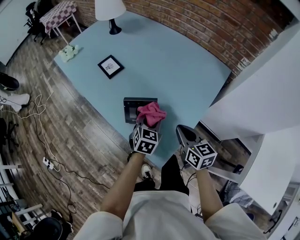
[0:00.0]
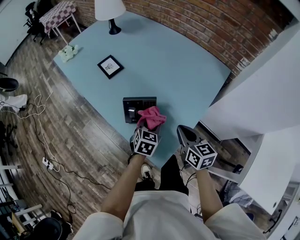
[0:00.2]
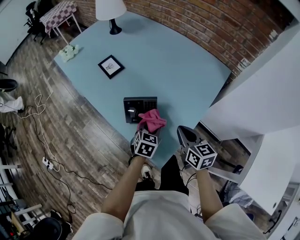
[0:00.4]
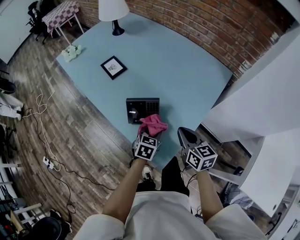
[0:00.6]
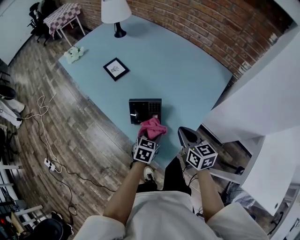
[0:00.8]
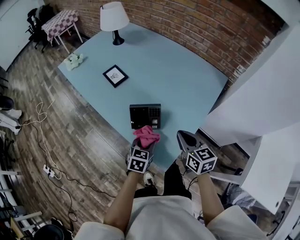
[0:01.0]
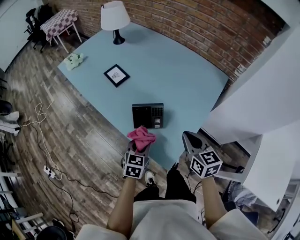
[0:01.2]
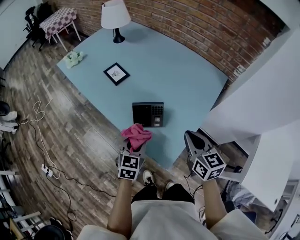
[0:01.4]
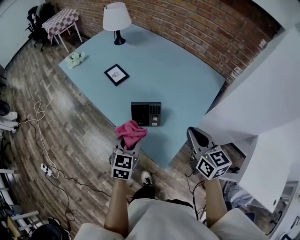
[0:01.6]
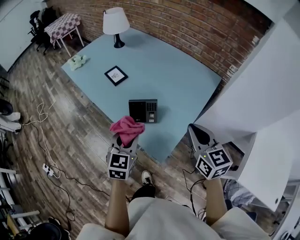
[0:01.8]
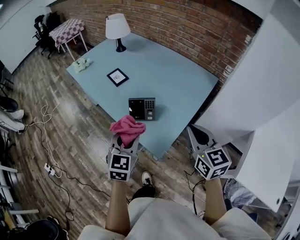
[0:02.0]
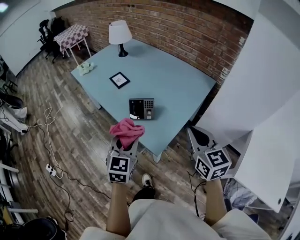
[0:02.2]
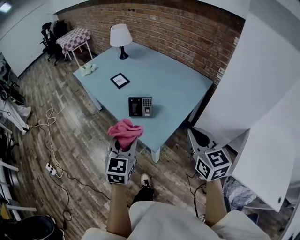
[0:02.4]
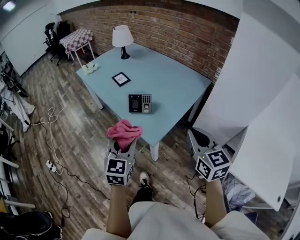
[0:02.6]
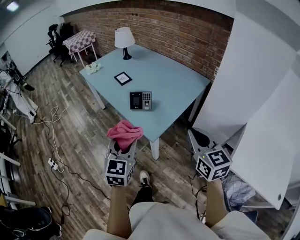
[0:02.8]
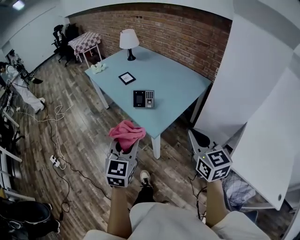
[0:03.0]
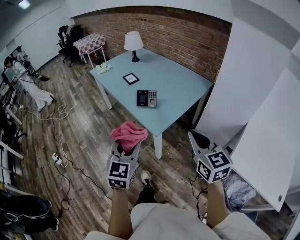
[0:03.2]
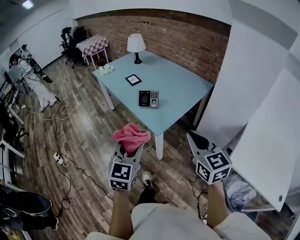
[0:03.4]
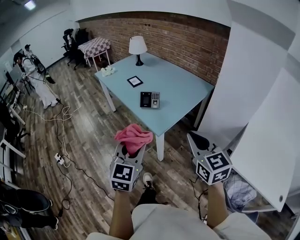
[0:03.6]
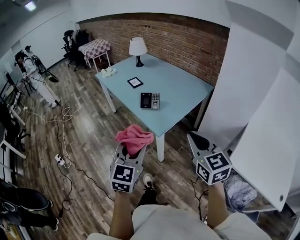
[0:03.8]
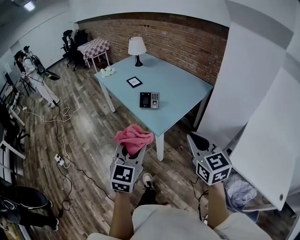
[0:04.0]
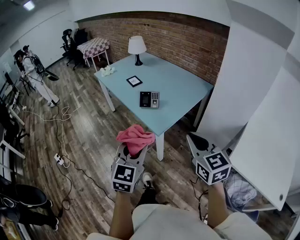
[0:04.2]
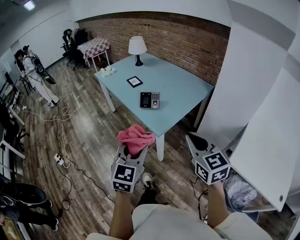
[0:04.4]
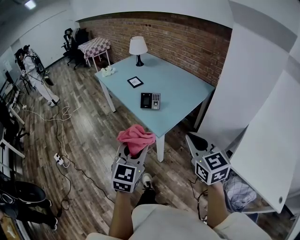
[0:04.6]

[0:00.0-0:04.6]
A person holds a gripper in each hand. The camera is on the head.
0:00.0 to 0:01.6: The right gripper shifts roughly 15 cm upward. Meanwhile the left gripper moves to the left, backward and upward, some 20 cm.
0:01.6 to 0:03.0: The right gripper heads backward, covering about 30 cm. Meanwhile the left gripper shifts roughly 35 cm backward and upward.
0:03.0 to 0:04.6: Both grippers move backward, roughly 5 cm.

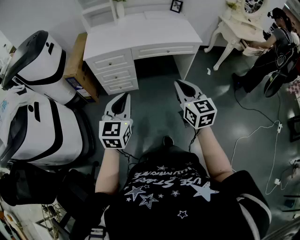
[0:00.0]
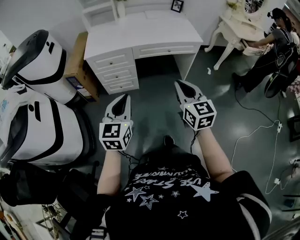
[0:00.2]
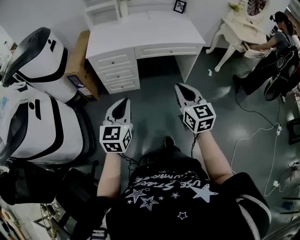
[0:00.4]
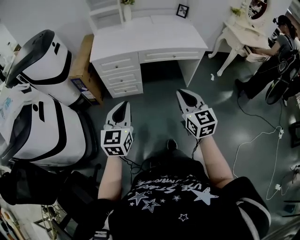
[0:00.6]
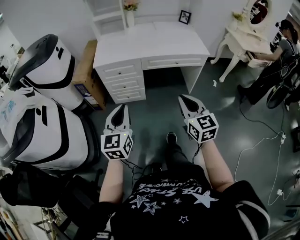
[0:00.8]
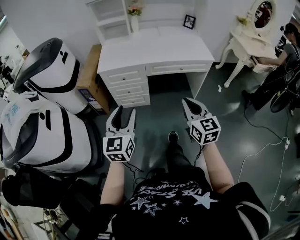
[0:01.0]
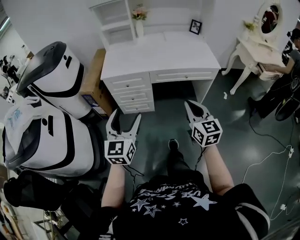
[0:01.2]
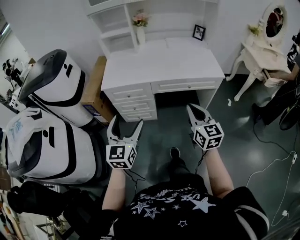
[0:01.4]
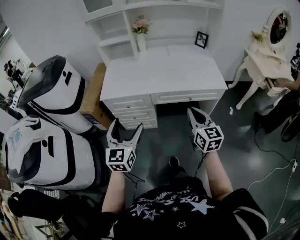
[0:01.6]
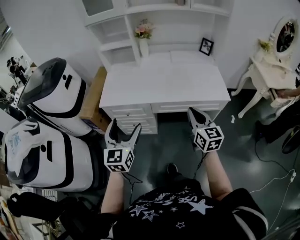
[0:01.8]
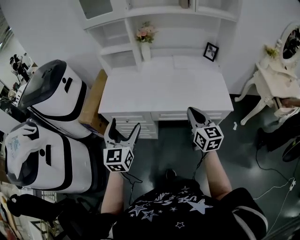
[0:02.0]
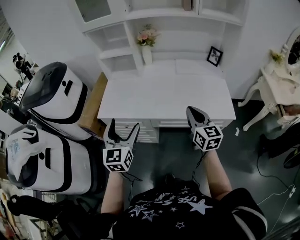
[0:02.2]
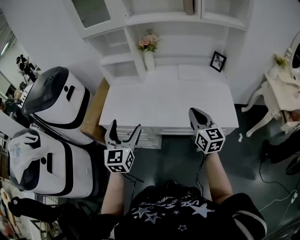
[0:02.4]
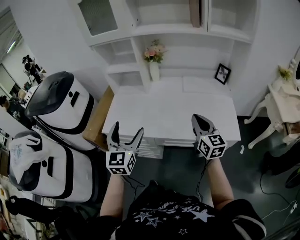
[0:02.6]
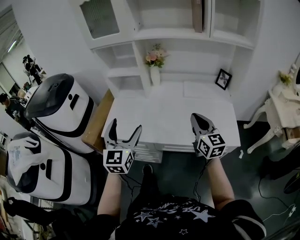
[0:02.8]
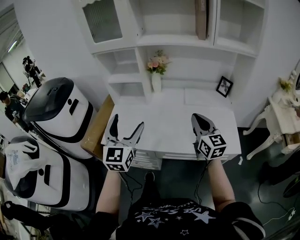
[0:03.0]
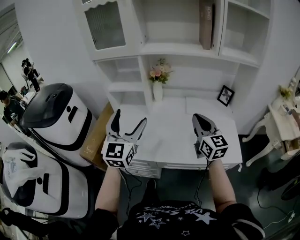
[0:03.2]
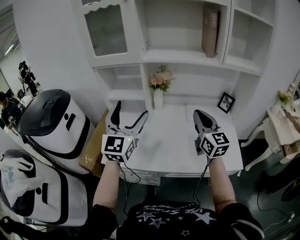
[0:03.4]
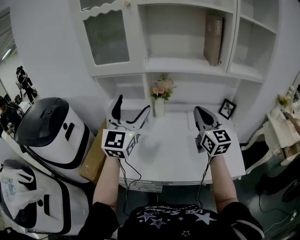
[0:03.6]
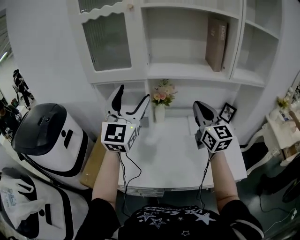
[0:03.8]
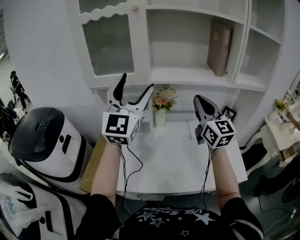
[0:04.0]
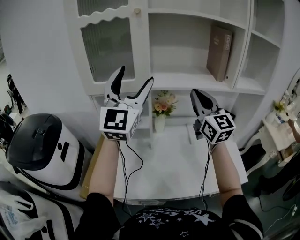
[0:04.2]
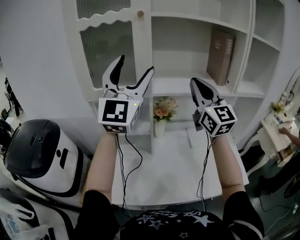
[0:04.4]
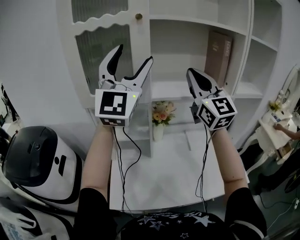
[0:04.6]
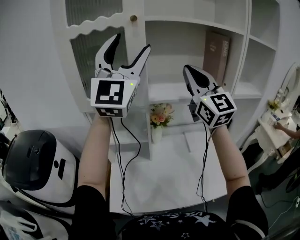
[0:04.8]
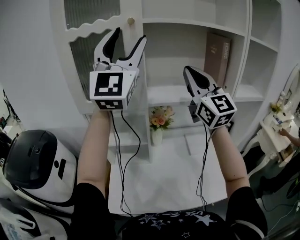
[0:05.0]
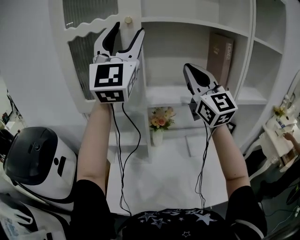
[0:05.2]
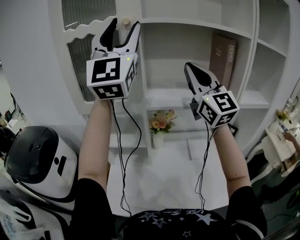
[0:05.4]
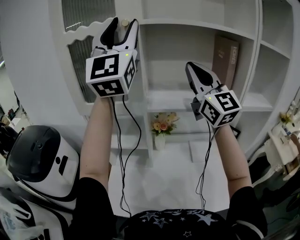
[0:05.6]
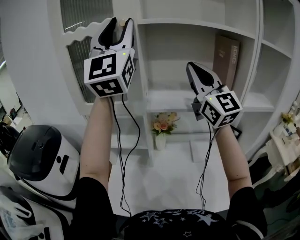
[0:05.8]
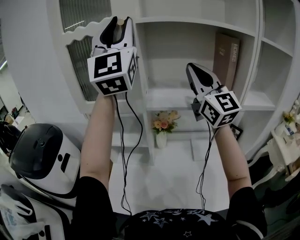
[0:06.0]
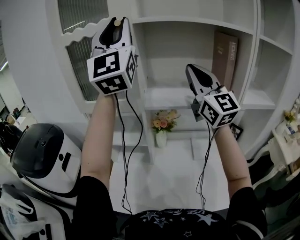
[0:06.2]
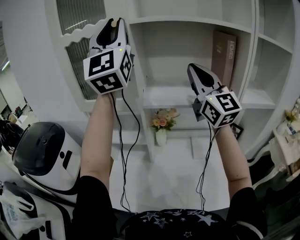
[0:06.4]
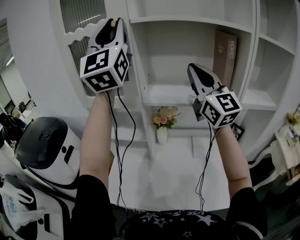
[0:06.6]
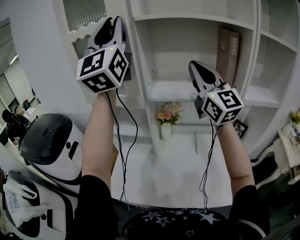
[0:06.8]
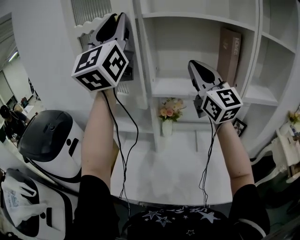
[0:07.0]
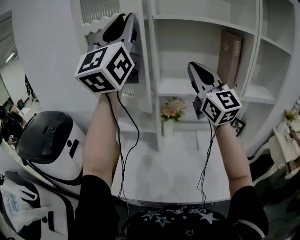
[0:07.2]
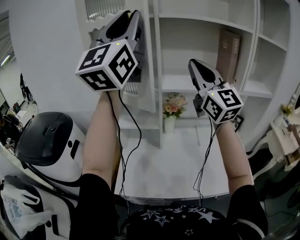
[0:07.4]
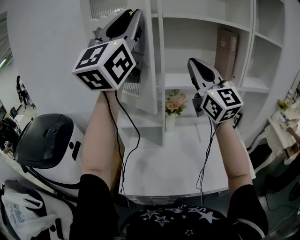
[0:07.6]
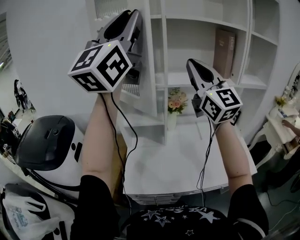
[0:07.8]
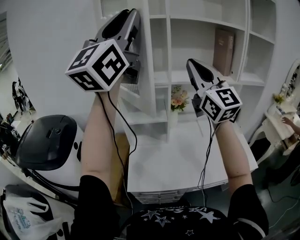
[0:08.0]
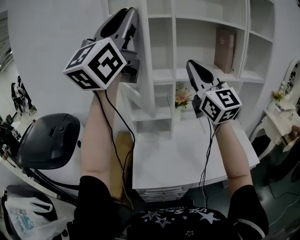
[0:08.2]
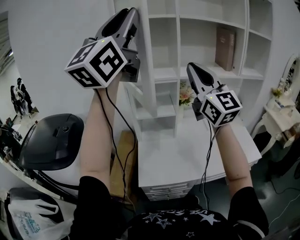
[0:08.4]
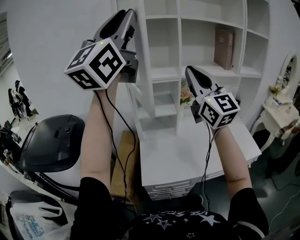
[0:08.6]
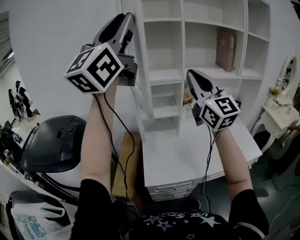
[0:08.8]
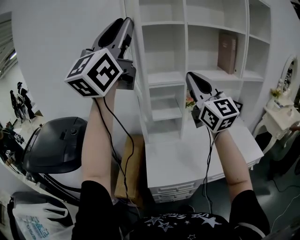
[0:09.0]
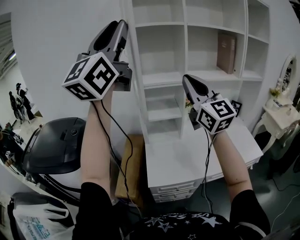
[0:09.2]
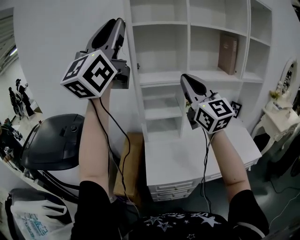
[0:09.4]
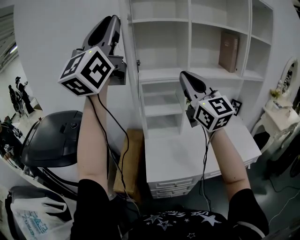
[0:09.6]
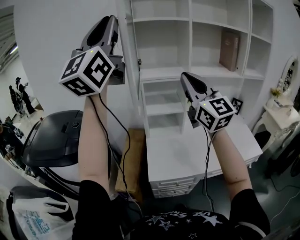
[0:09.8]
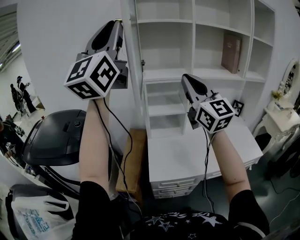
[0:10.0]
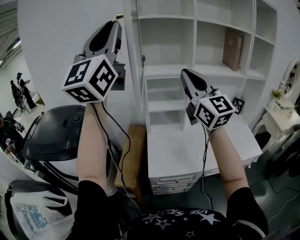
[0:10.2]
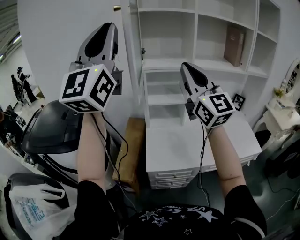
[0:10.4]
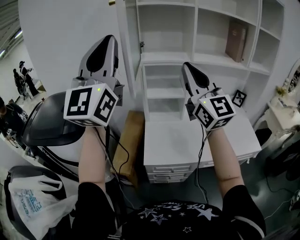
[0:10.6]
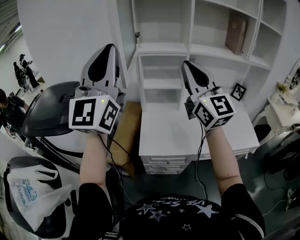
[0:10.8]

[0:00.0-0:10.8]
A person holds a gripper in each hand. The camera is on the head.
0:00.0 to 0:01.6: Both grippers move forward, some 20 cm. The left gripper opens its fingers.
0:01.6 to 0:03.0: The grippers both shift forward by some 30 cm.
0:03.0 to 0:04.6: The left gripper is displaced upward and forward by about 50 cm, and rotates approximately 40 degrees. Meanwhile the right gripper heads upward, forward and to the left, covering roughly 40 cm, and swivels approximately 30 degrees.
0:04.6 to 0:06.2: The right gripper shifts by about 5 cm. The left gripper moves upward, roughly 10 cm, swivels some 20 degrees, and closes up.
0:06.2 to 0:07.8: The grippers both shift backward and to the left by some 20 cm. The left gripper rotates some 30 degrees.
0:07.8 to 0:09.2: The two grippers go approximately 20 cm to the left and backward.
0:09.2 to 0:10.8: The right gripper goes some 5 cm backward; the left gripper moves downward and backward, some 15 cm, and rotates about 20 degrees.

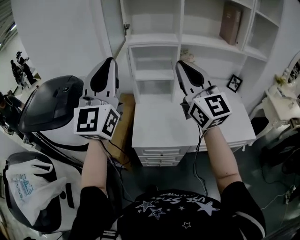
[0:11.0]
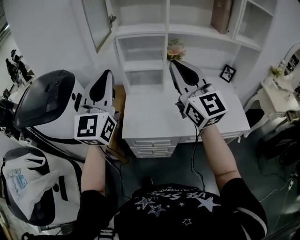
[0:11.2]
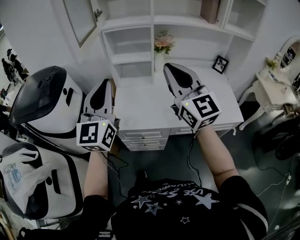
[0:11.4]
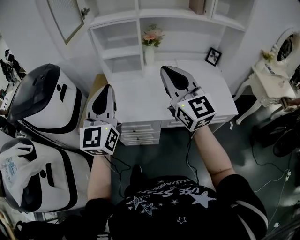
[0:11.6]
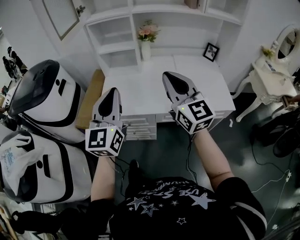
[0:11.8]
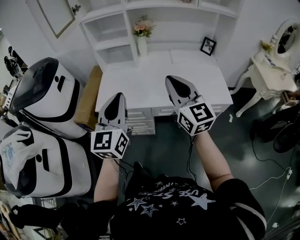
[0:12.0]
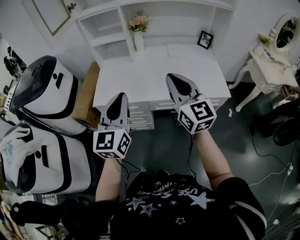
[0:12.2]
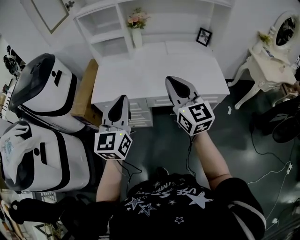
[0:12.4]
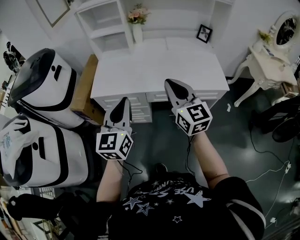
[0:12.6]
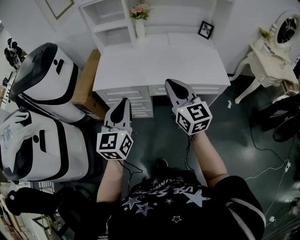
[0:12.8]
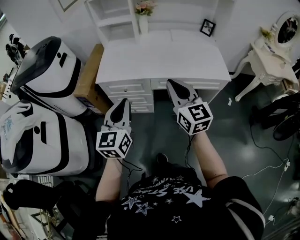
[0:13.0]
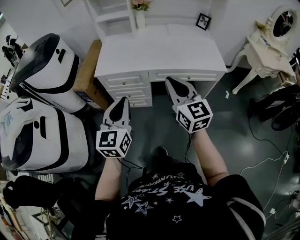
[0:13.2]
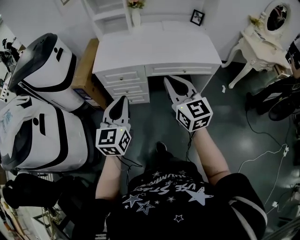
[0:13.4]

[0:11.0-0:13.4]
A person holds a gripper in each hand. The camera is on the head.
0:11.0 to 0:12.2: The right gripper heads to the right, backward and downward, covering some 35 cm. Meanwhile the left gripper is displaced to the right, downward and backward by some 40 cm, and swivels approximately 30 degrees.
0:12.2 to 0:13.4: The right gripper moves backward, some 20 cm. Meanwhile the left gripper moves backward and downward, some 20 cm.

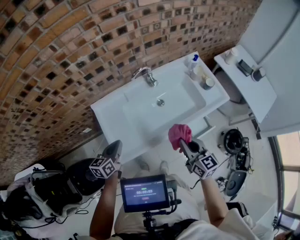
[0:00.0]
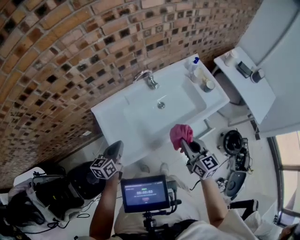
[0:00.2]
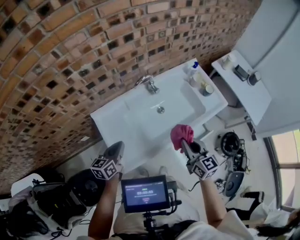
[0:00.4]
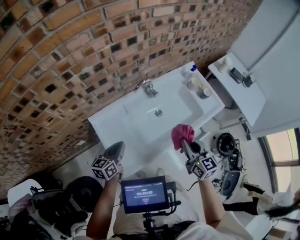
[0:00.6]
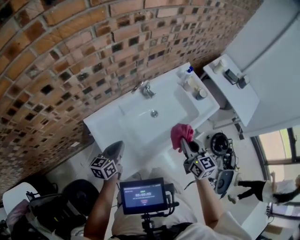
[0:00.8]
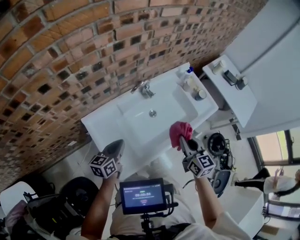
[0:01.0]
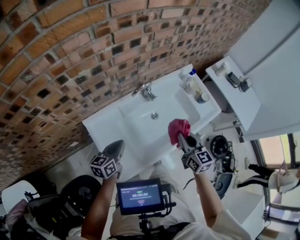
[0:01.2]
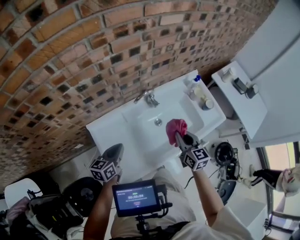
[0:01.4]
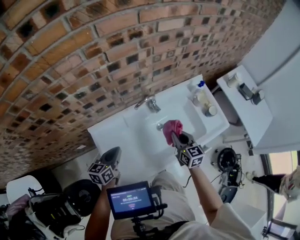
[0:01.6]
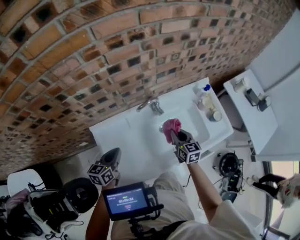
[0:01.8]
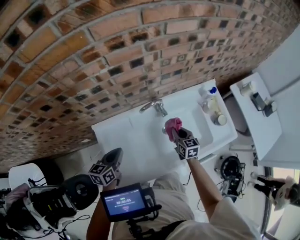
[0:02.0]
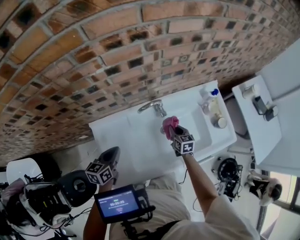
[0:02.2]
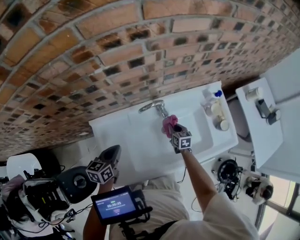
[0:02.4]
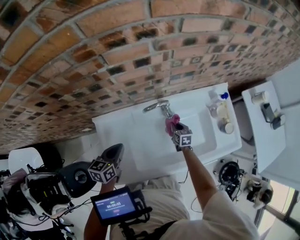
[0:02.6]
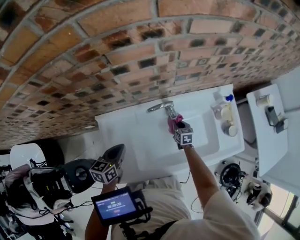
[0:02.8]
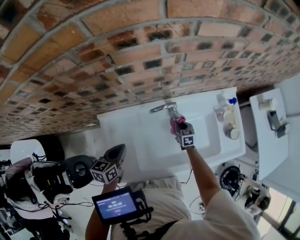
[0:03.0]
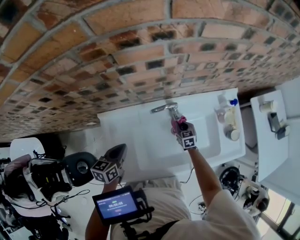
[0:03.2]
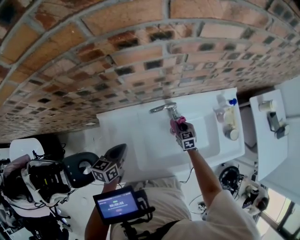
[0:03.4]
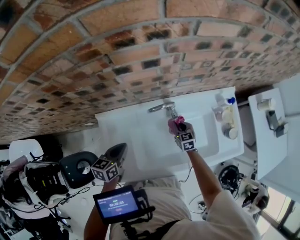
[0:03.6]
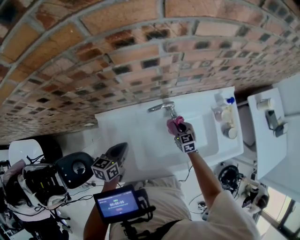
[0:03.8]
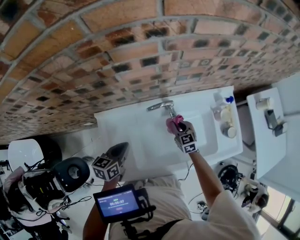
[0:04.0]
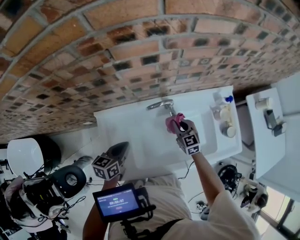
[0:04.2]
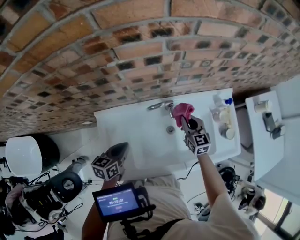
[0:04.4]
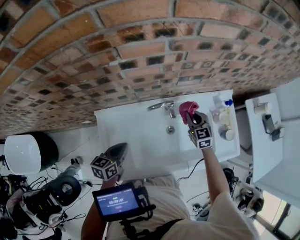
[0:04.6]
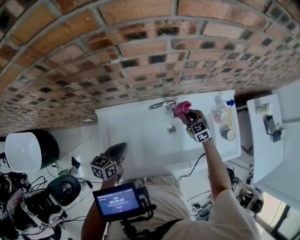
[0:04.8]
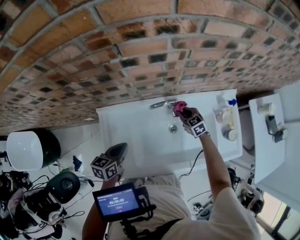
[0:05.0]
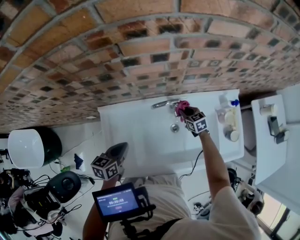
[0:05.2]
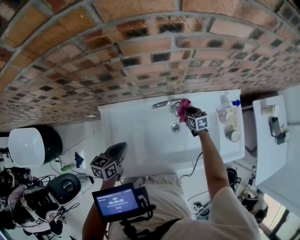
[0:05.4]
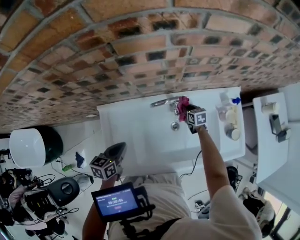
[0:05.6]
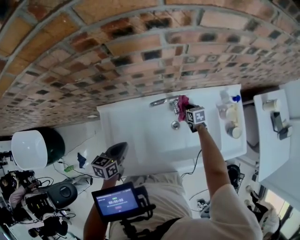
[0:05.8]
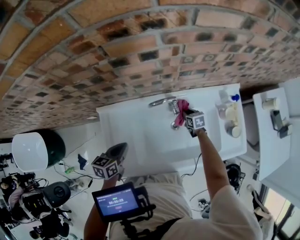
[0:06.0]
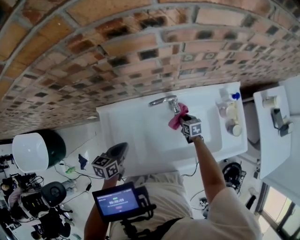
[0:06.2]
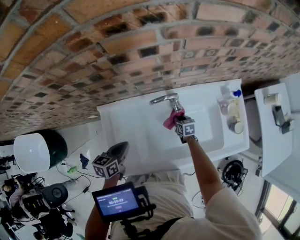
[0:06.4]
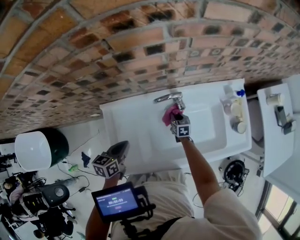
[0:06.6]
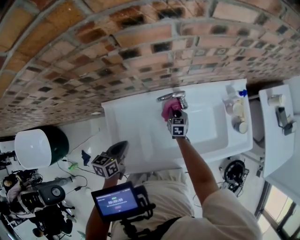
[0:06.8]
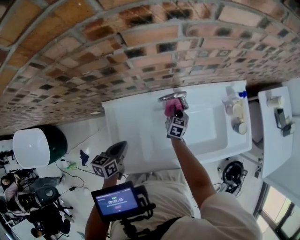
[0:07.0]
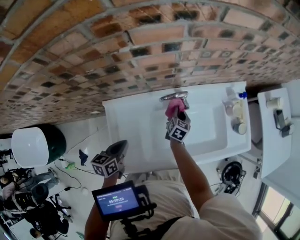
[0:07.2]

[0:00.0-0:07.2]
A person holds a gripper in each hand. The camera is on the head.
0:00.0 to 0:01.4: The two grippers go some 15 cm forward.
0:01.4 to 0:02.8: The right gripper moves downward and forward, roughly 35 cm, and rotates about 30 degrees. The left gripper heads forward, covering roughly 5 cm.
0:02.8 to 0:04.4: The right gripper travels upward by about 20 cm, and swivels roughly 30 degrees.
0:04.4 to 0:05.8: The right gripper travels downward by some 20 cm, and changes its angle by some 30 degrees.
0:05.8 to 0:07.2: The right gripper goes about 10 cm upward, to the left and backward, and rotates approximately 40 degrees.
